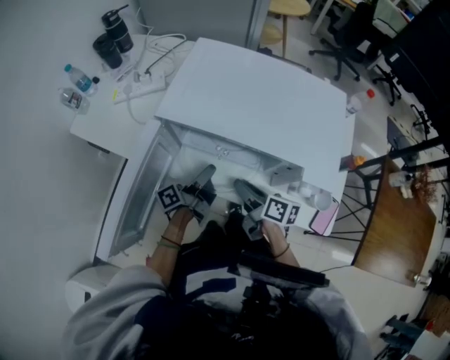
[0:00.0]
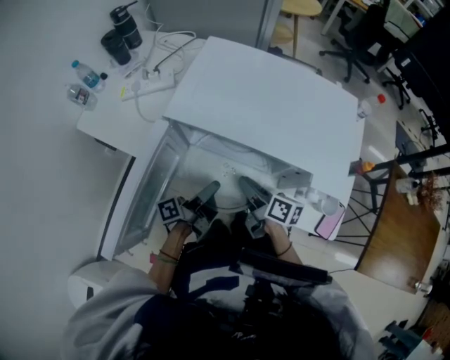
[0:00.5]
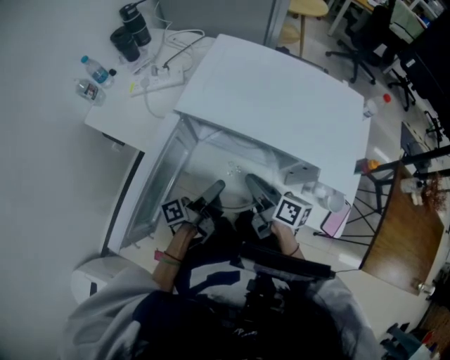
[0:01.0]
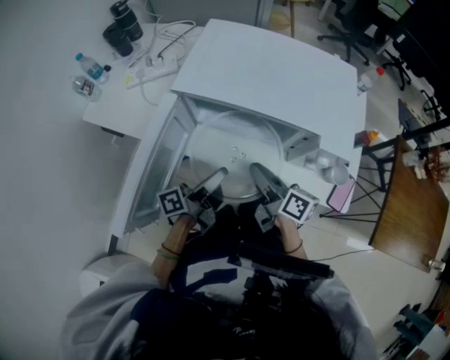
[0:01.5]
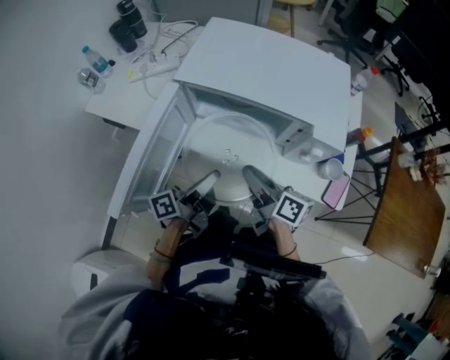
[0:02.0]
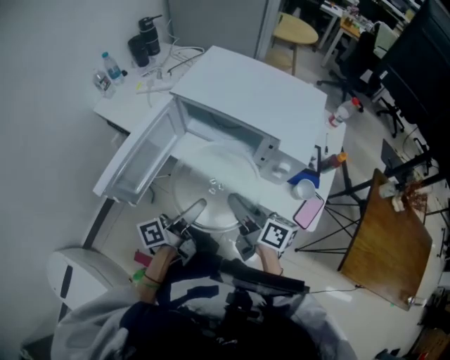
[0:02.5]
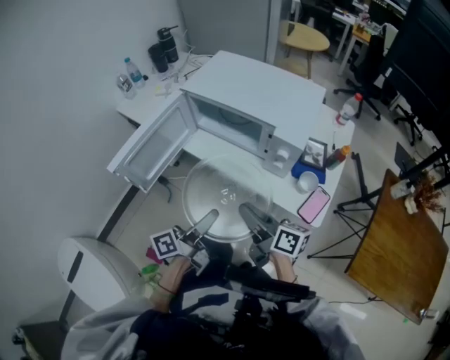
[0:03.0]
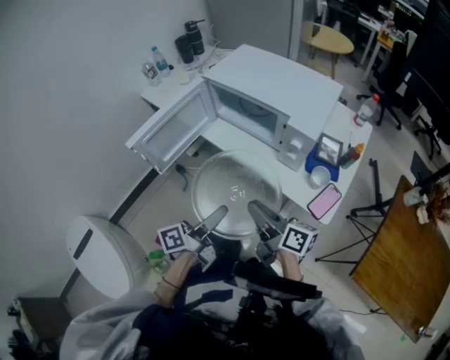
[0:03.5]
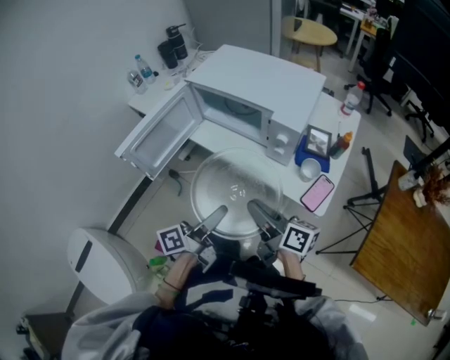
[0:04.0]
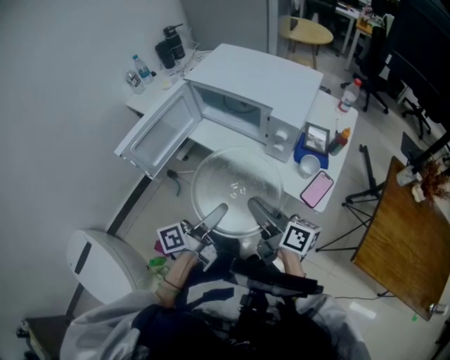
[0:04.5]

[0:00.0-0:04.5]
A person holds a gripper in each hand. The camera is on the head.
0:00.0 to 0:02.0: Both grippers move backward and upward, some 15 cm.
0:02.0 to 0:04.5: Both grippers move backward and to the right, about 20 cm.

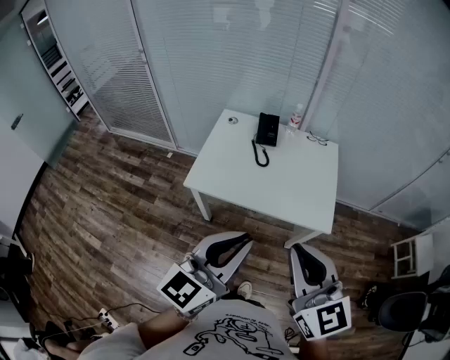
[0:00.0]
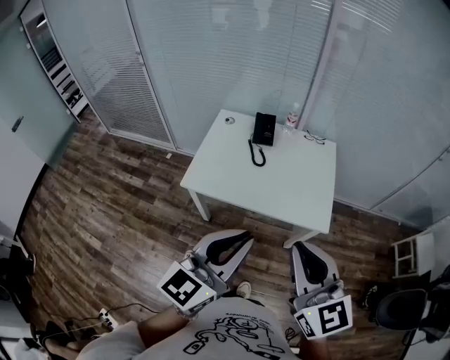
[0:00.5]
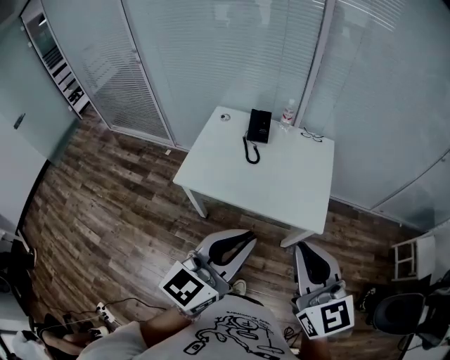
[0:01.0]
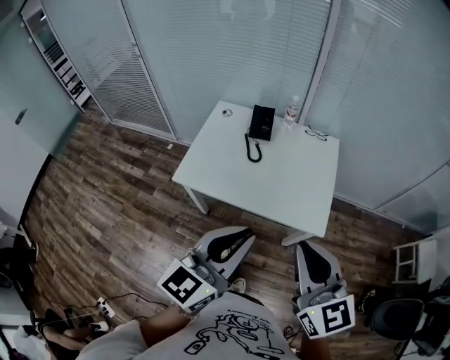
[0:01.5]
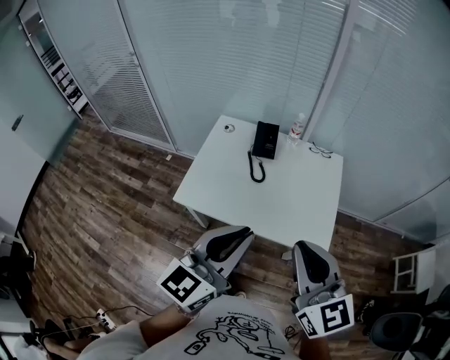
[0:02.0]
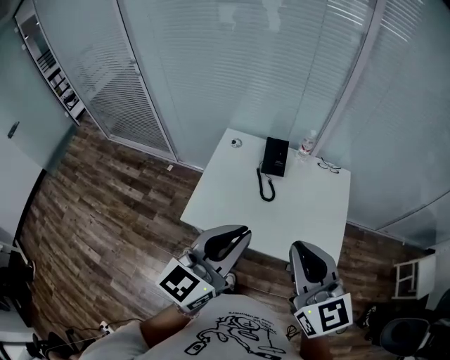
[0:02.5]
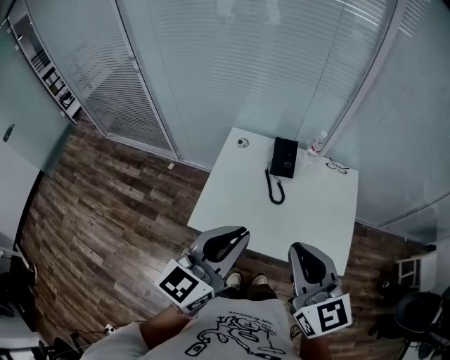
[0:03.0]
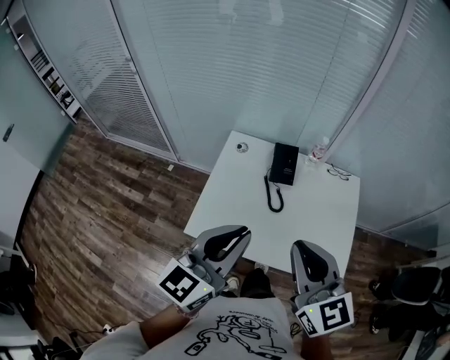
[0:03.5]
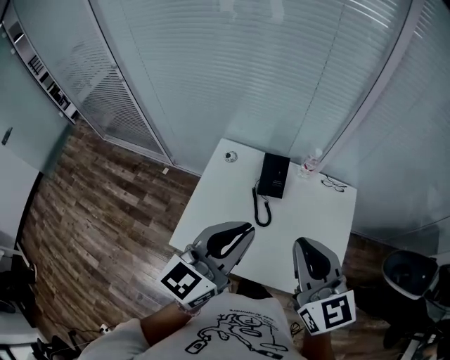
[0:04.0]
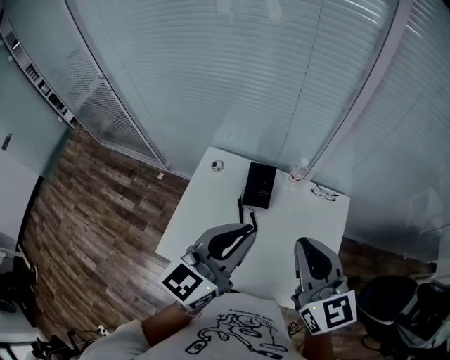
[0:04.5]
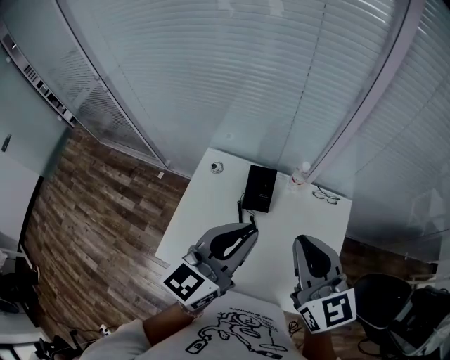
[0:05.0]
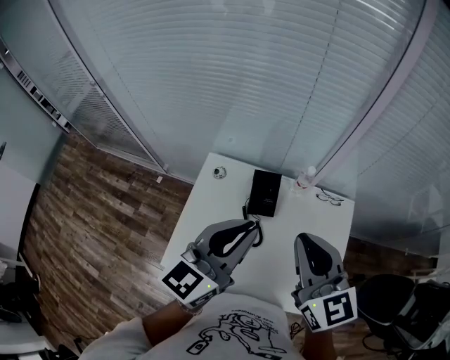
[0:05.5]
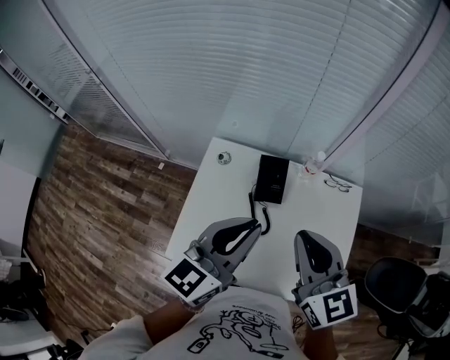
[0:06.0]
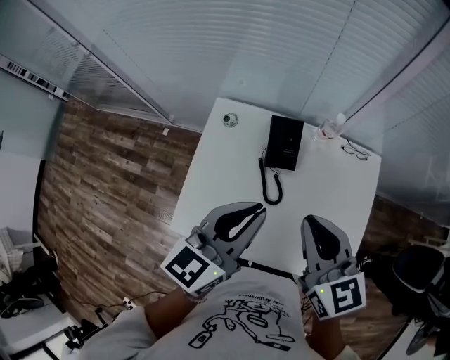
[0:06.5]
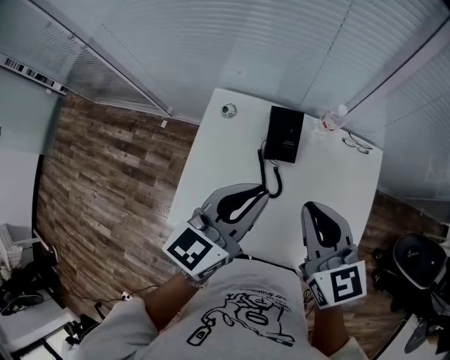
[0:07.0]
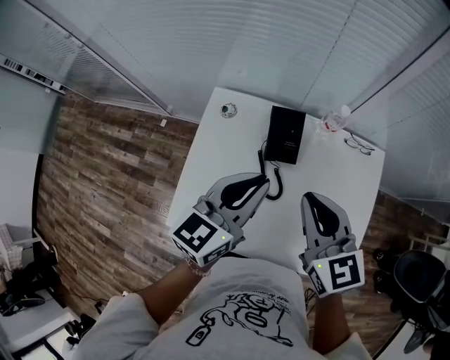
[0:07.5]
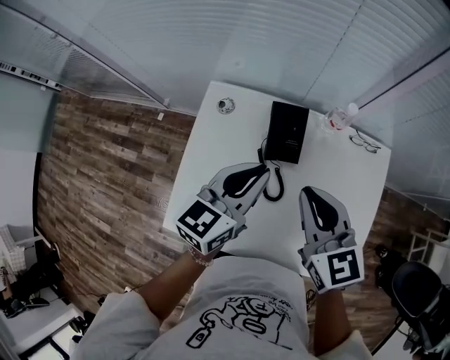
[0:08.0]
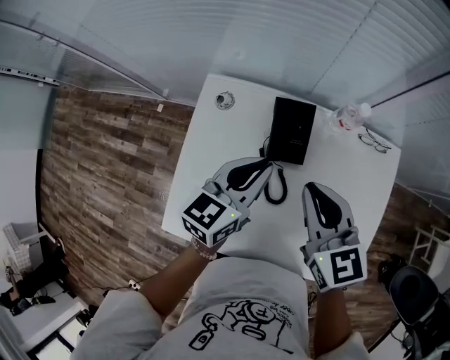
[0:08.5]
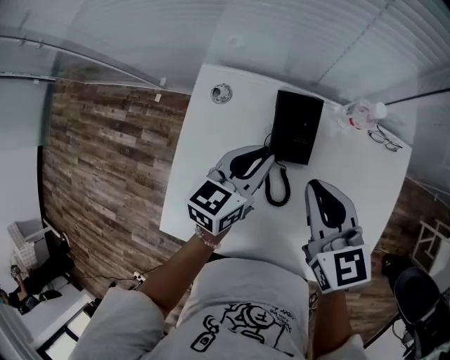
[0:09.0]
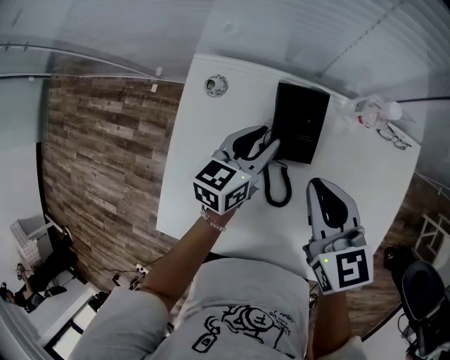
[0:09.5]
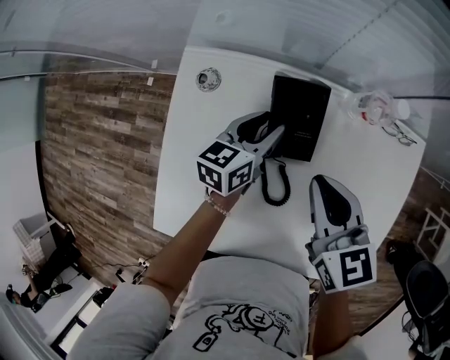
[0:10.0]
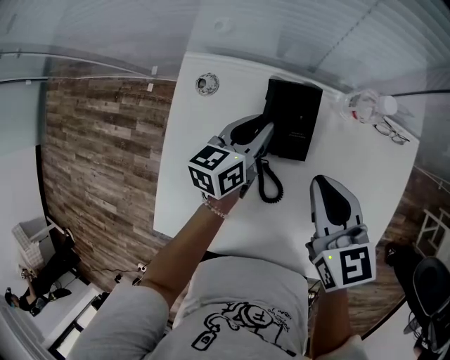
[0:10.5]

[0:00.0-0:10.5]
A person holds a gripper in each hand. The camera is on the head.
0:00.0 to 0:02.0: The grippers both shift forward by roughly 15 cm.
0:02.0 to 0:04.0: The grippers both shift forward by approximately 25 cm.
0:04.0 to 0:06.5: Both grippers travel together forward and downward, some 15 cm.
0:06.5 to 0:08.5: The grippers both shift downward and forward by approximately 20 cm.
0:08.5 to 0:10.5: The left gripper travels downward and forward by about 20 cm, and opens and closes again, while the right gripper heads downward, covering some 10 cm.

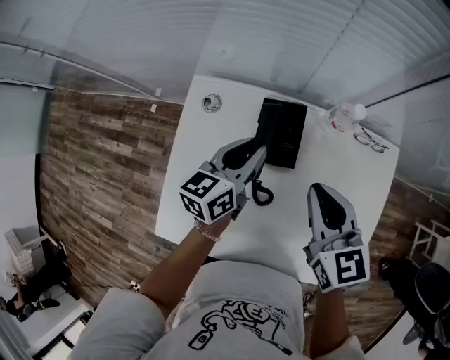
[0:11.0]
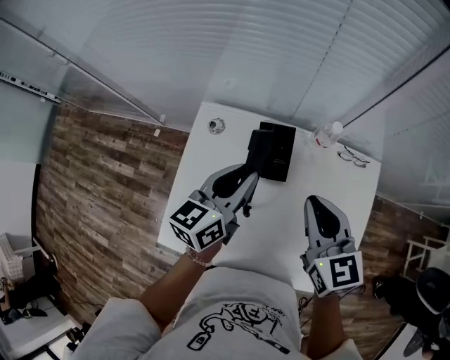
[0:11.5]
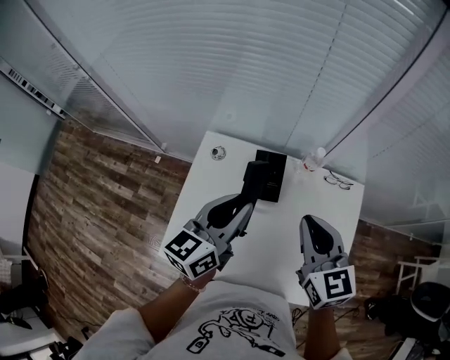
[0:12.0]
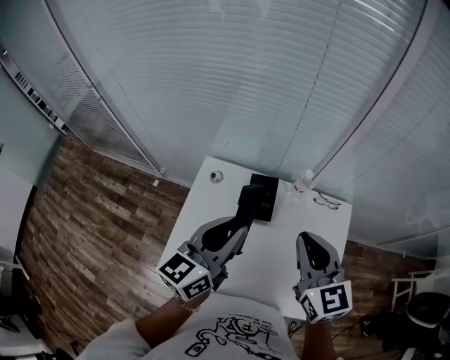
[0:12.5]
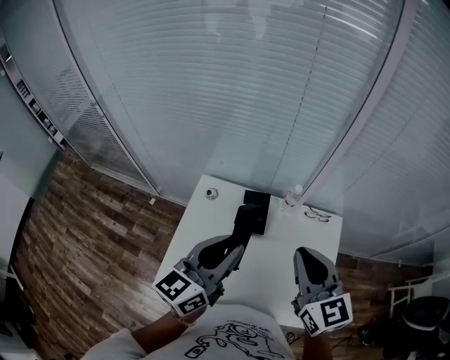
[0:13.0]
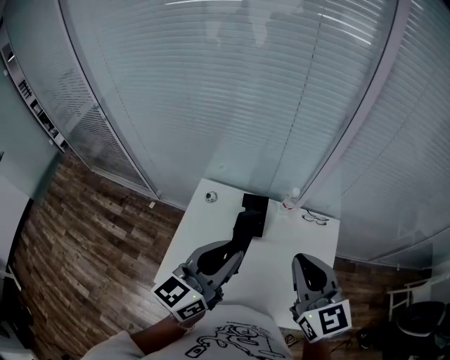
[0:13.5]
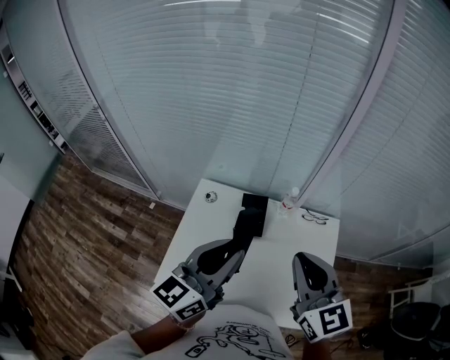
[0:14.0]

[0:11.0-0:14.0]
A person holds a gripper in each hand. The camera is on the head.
0:11.0 to 0:12.5: Both grippers move upward and backward, some 25 cm.
0:12.5 to 0:14.0: Both grippers move upward and backward, roughly 10 cm.

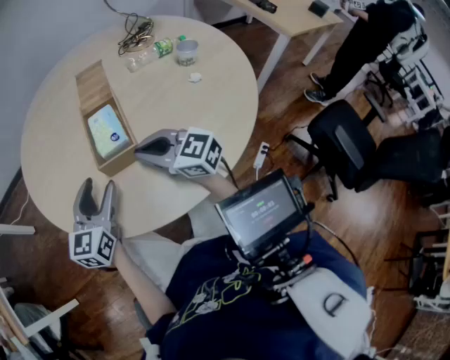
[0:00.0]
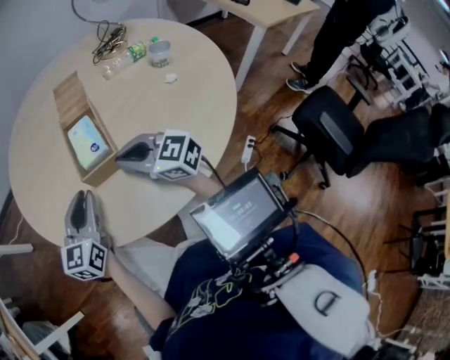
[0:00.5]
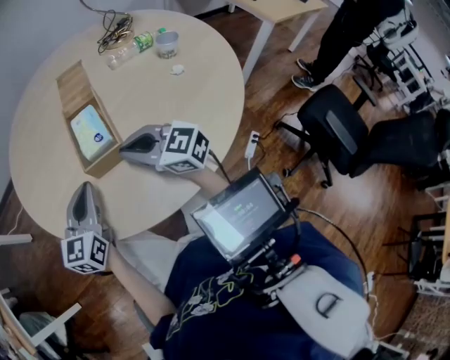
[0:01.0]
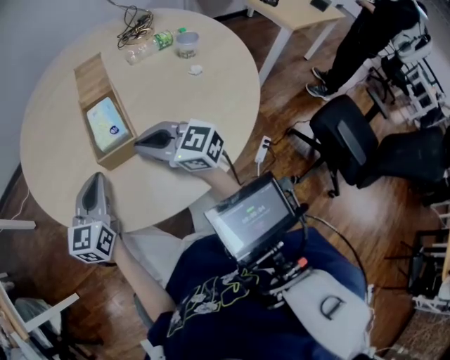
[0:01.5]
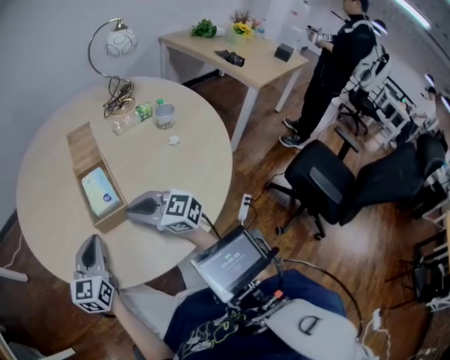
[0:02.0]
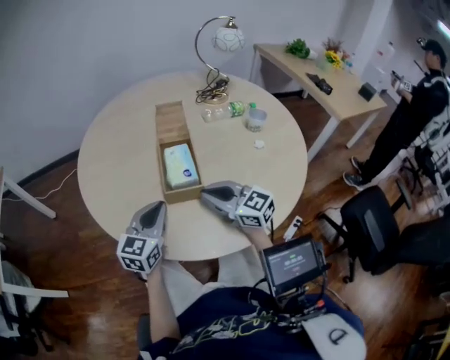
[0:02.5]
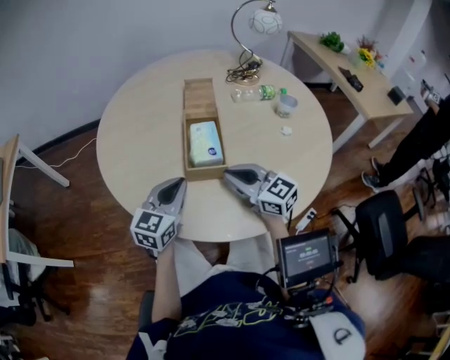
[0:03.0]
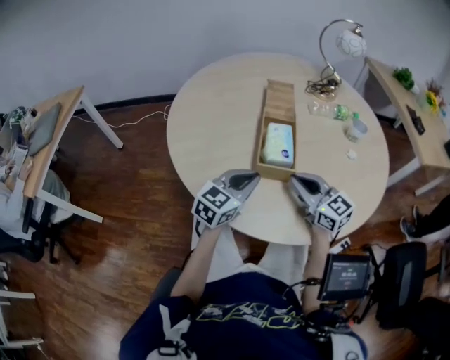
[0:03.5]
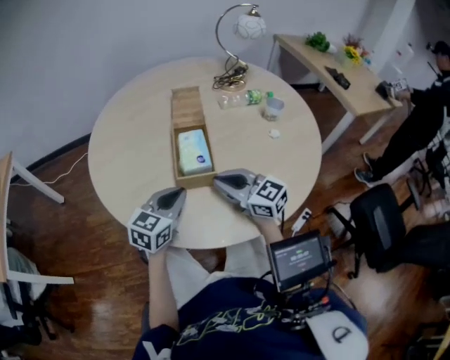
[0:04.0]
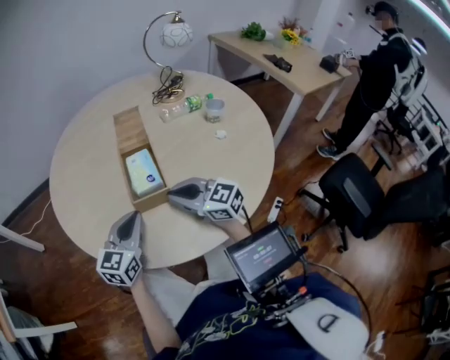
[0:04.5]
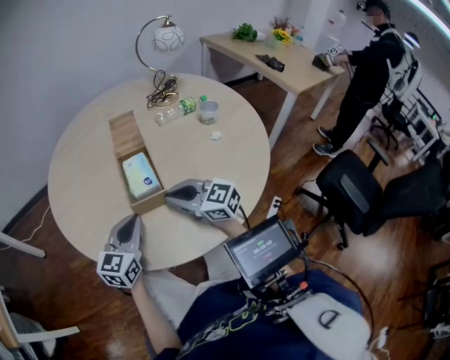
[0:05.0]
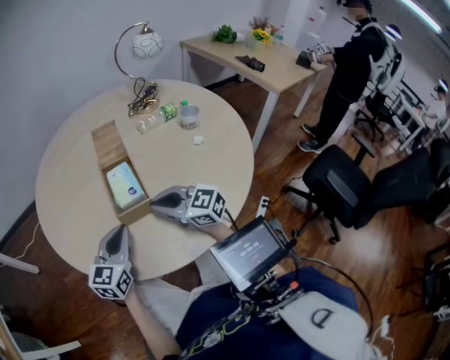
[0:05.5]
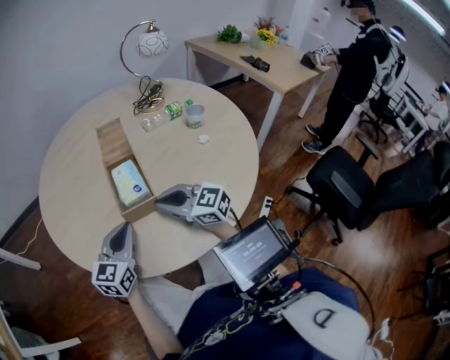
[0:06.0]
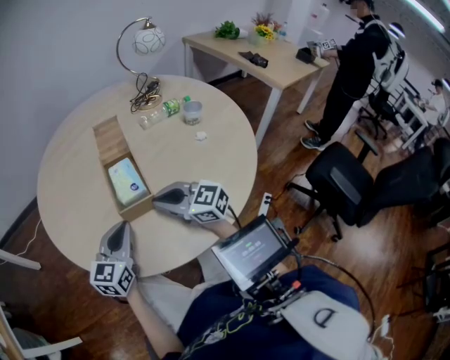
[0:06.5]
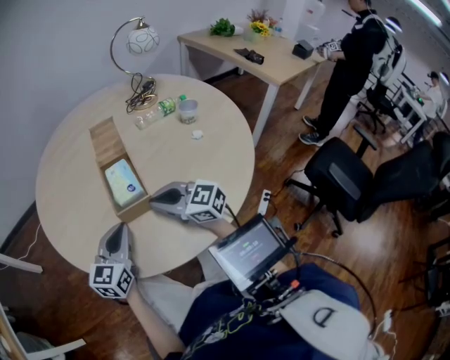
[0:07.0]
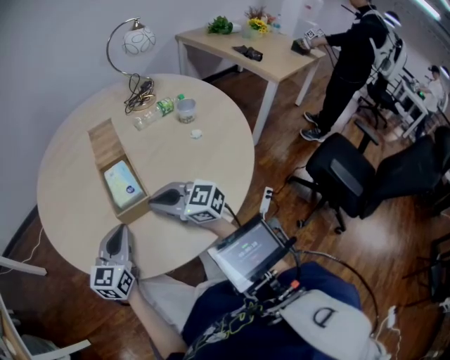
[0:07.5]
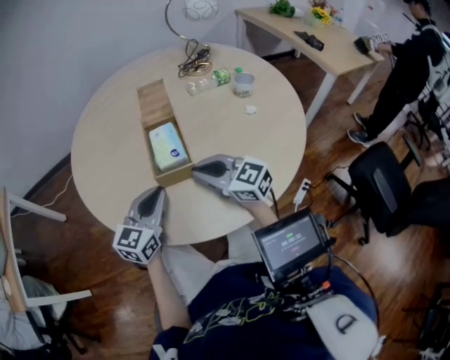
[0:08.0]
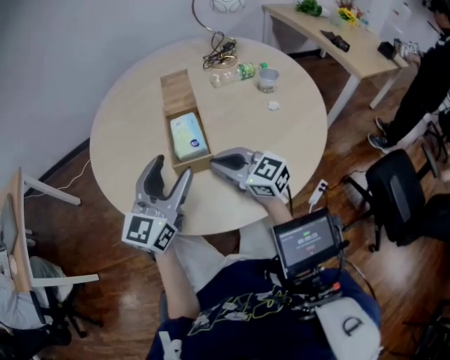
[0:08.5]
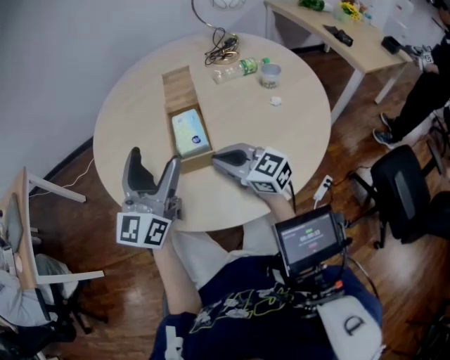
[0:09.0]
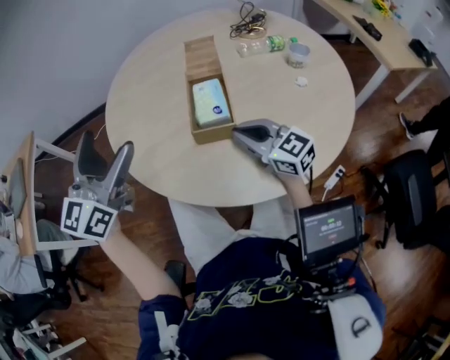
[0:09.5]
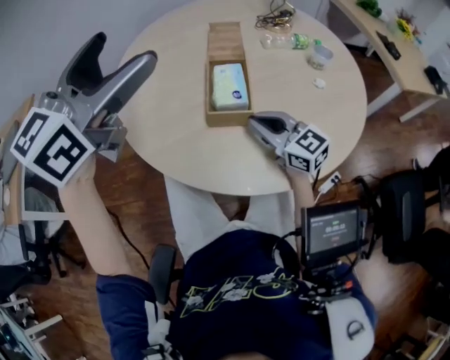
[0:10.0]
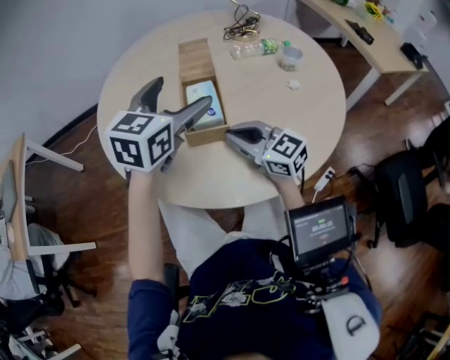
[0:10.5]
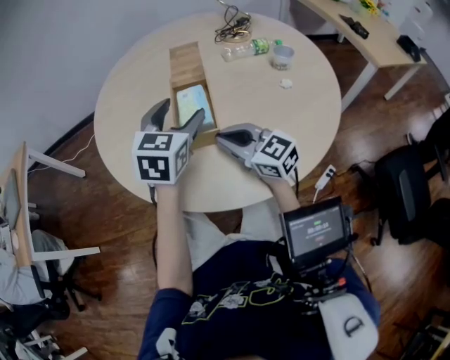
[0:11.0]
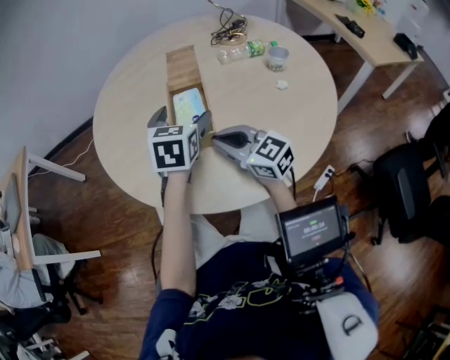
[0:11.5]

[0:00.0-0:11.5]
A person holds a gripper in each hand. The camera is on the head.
0:00.0 to 0:02.0: The left gripper closes up.
0:02.0 to 0:06.0: There are only small adjustments of the grippers.
0:06.0 to 0:07.5: Both grippers stay put.
0:07.5 to 0:09.5: The left gripper goes approximately 25 cm upward and to the left, rotates roughly 20 degrees, and opens up.
0:09.5 to 0:11.5: The left gripper travels to the right and downward by roughly 25 cm, and points its fingers approximately 30 degrees further downward.
